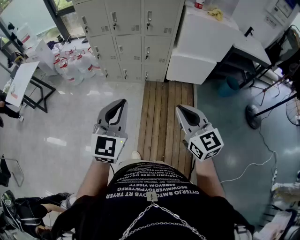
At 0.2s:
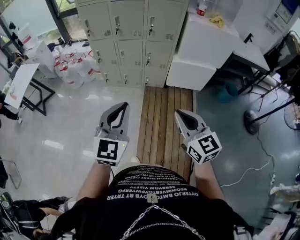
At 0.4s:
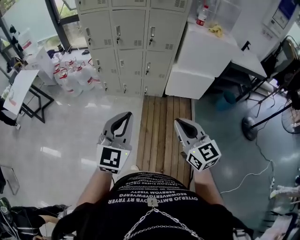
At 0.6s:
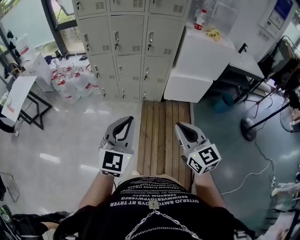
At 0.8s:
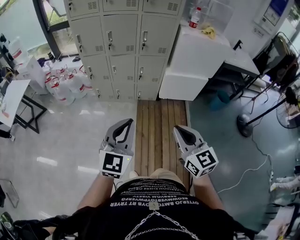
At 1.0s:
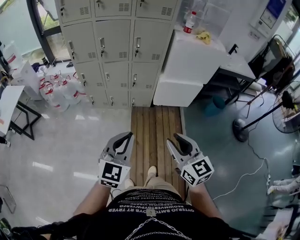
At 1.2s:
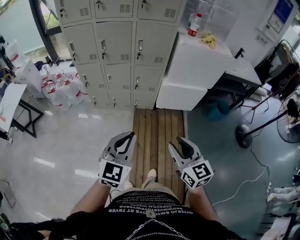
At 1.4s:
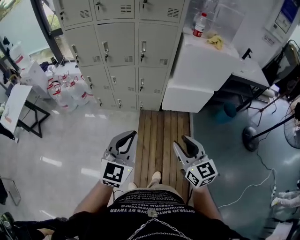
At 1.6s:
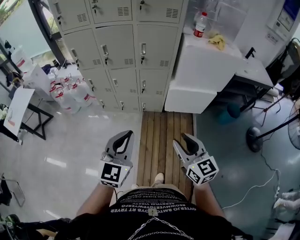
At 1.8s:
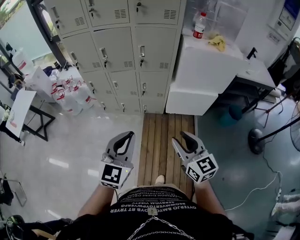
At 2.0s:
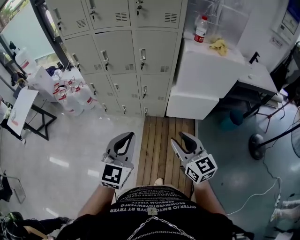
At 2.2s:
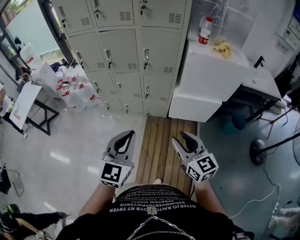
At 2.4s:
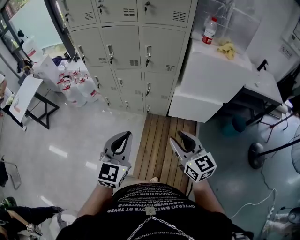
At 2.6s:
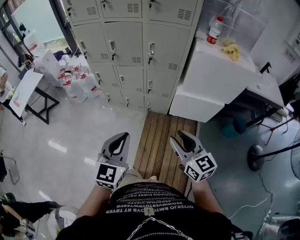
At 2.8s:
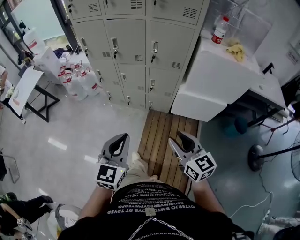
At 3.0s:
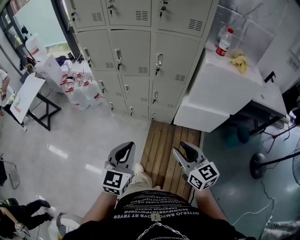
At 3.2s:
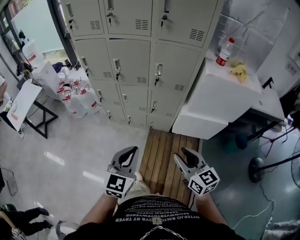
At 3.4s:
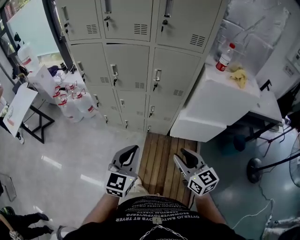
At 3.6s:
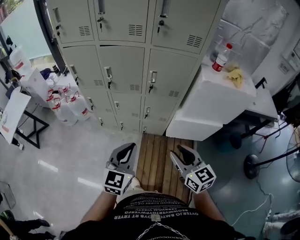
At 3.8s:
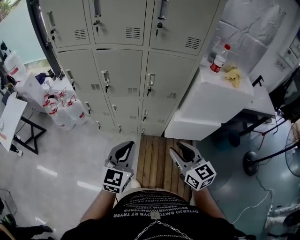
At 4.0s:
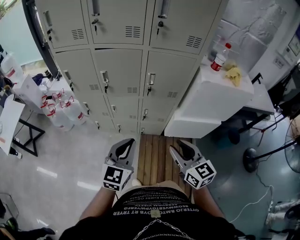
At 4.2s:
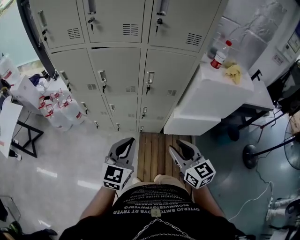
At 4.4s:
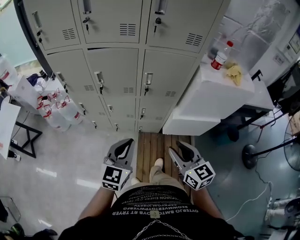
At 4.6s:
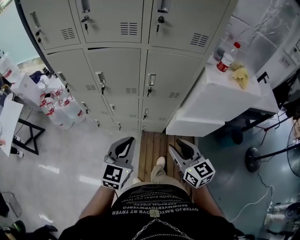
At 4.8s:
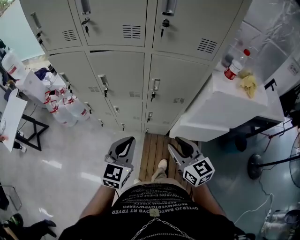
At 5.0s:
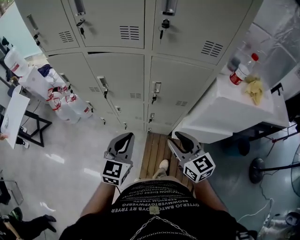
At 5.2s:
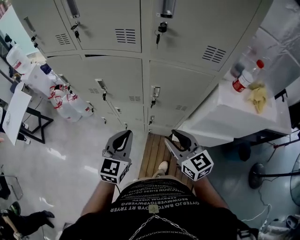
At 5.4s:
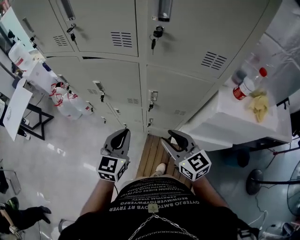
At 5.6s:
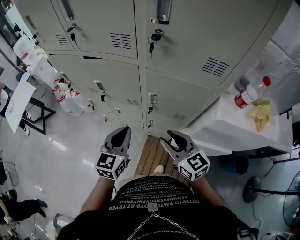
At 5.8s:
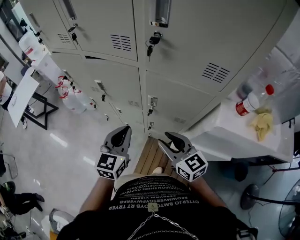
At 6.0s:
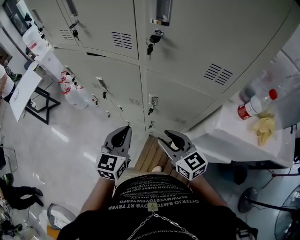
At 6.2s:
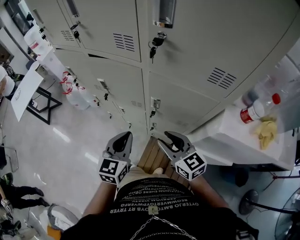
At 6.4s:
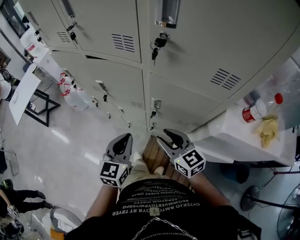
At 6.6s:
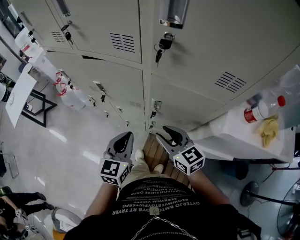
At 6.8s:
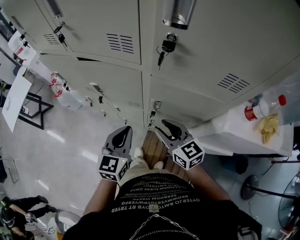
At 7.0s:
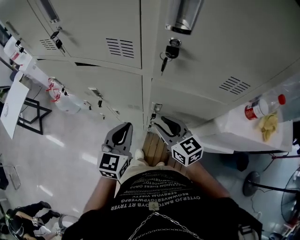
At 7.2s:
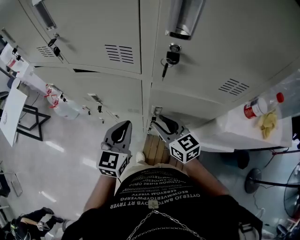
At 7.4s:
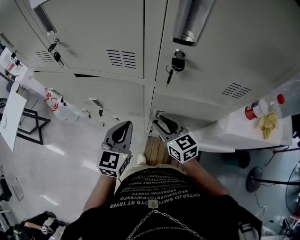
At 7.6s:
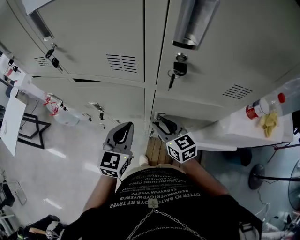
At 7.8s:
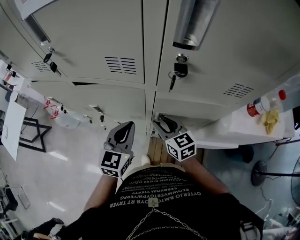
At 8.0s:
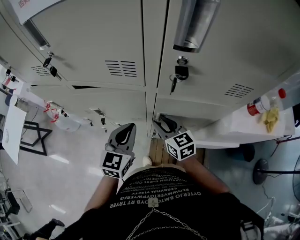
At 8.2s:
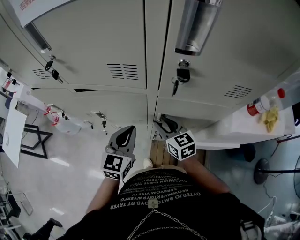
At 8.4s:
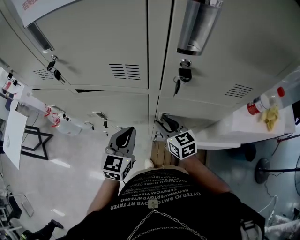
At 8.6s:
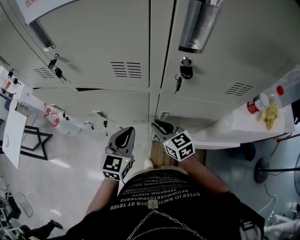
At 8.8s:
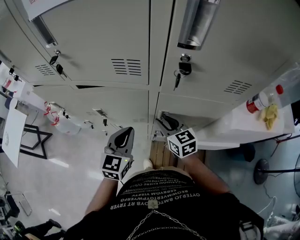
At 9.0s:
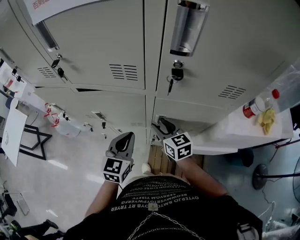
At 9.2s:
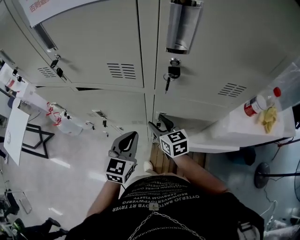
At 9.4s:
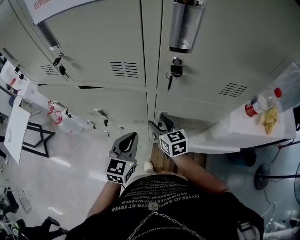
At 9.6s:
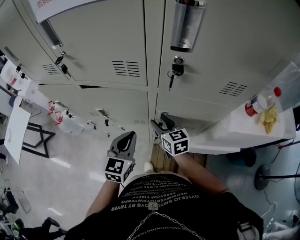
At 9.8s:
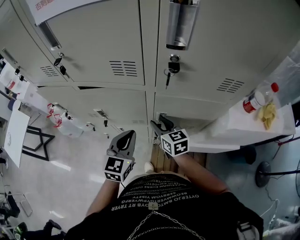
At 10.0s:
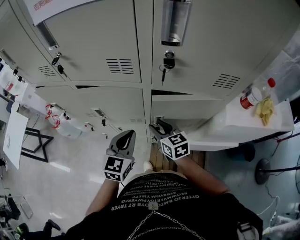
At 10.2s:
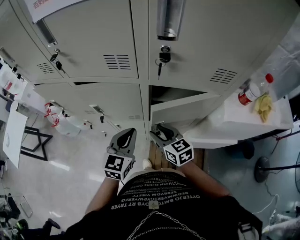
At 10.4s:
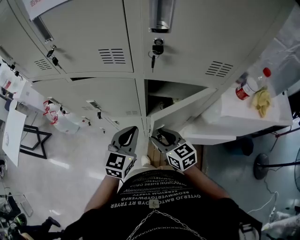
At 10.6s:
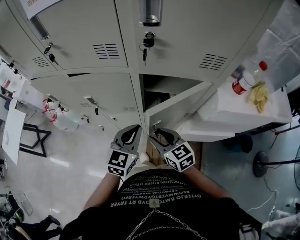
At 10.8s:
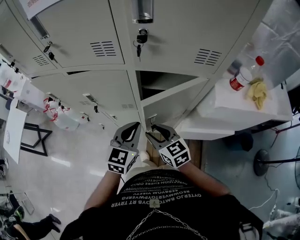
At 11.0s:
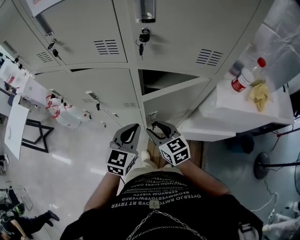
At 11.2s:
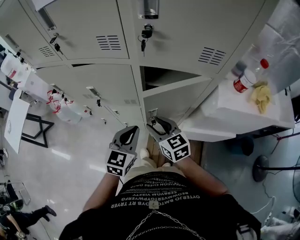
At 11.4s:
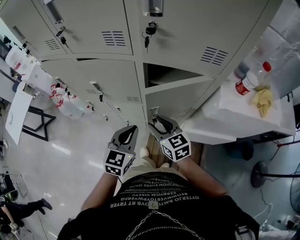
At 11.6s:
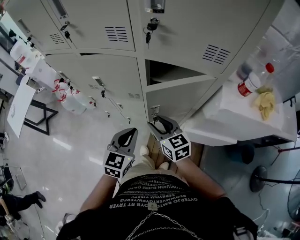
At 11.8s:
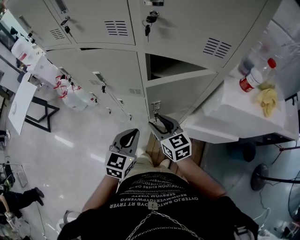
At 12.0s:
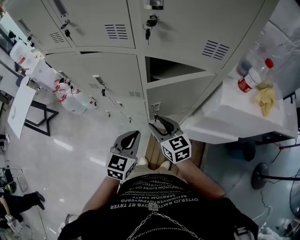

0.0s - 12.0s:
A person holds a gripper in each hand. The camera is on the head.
0.0s - 1.6s: The grippers both shift forward by some 20 cm. The right gripper opens up.
1.6s - 3.0s: The left gripper goes about 10 cm forward and downward, while the right gripper shifts roughly 10 cm forward.
3.0s - 4.4s: The two grippers go some 20 cm forward.
4.4s - 6.0s: The left gripper ends up roughly 20 cm from where it was, and swivels approximately 30 degrees. Meanwhile the right gripper ends up some 25 cm from where it was, and rotates approximately 30 degrees.
6.0s - 7.6s: Both grippers travel together forward, about 15 cm.
7.6s - 9.0s: The grippers stay close to where they were, moving slightly.
9.0s - 10.4s: The left gripper shifts by some 5 cm, while the right gripper moves backward, about 10 cm.
10.4s - 12.0s: The left gripper goes roughly 10 cm backward.

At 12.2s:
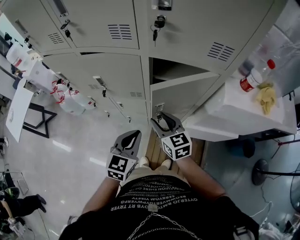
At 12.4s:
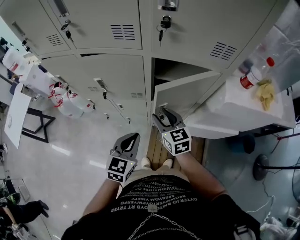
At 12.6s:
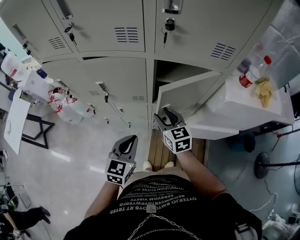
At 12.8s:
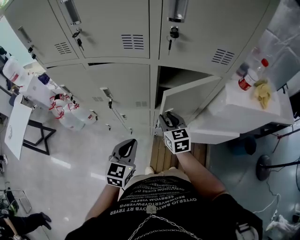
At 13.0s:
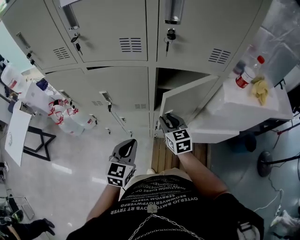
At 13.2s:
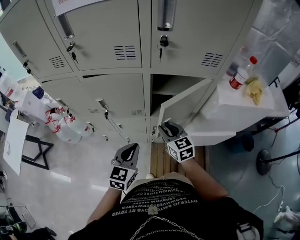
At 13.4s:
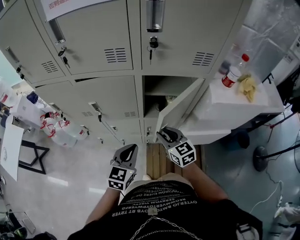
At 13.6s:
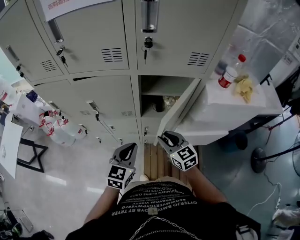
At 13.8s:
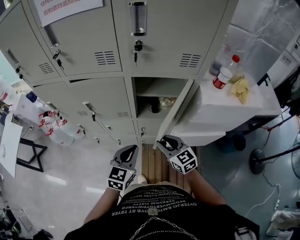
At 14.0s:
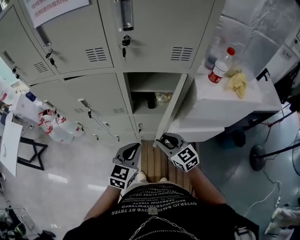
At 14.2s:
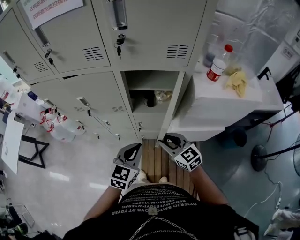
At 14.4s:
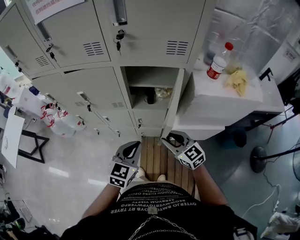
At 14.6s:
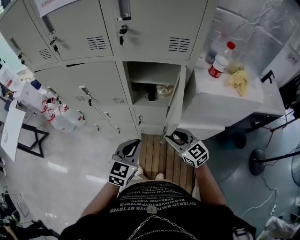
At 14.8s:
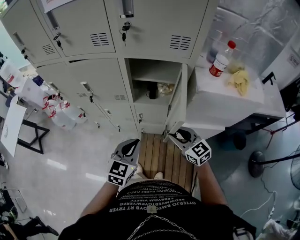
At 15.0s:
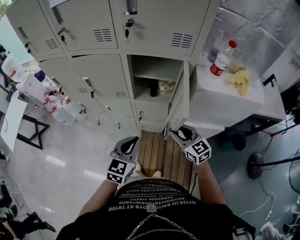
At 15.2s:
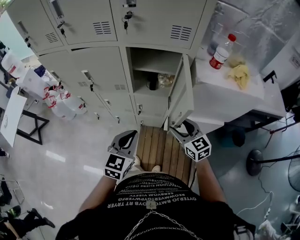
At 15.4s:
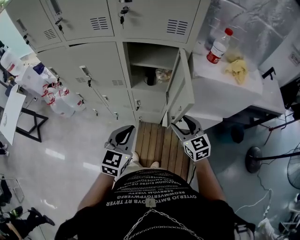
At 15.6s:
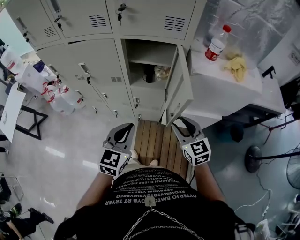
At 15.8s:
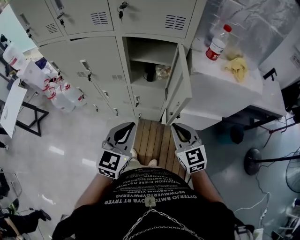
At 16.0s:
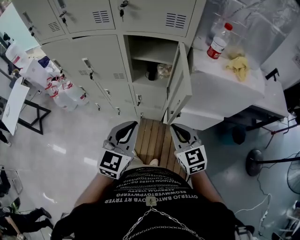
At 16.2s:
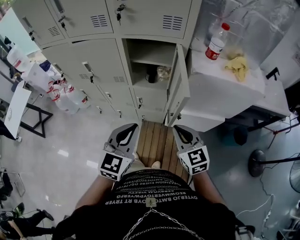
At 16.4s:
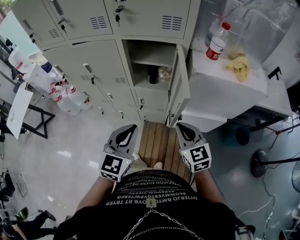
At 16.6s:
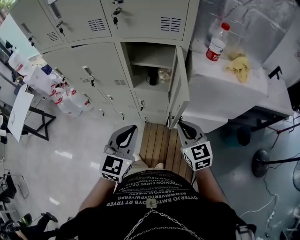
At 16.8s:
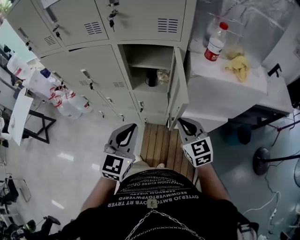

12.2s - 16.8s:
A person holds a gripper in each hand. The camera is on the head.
12.2s - 13.8s: The left gripper travels to the left and back again, about 10 cm each way. The right gripper shifts some 10 cm backward and to the right.
13.8s - 15.2s: The left gripper is displaced backward and to the right by about 10 cm; the right gripper heads to the right and backward, covering approximately 15 cm, and opens.
15.2s - 16.8s: The left gripper is displaced upward by roughly 5 cm; the right gripper reaches roughly 10 cm backward, then returns, and closes its fingers.

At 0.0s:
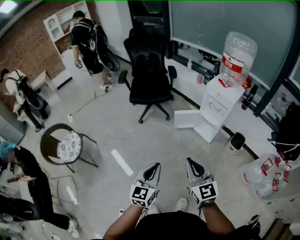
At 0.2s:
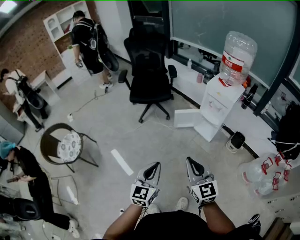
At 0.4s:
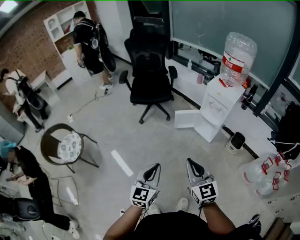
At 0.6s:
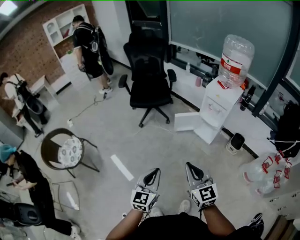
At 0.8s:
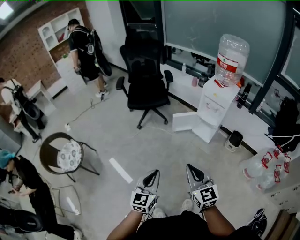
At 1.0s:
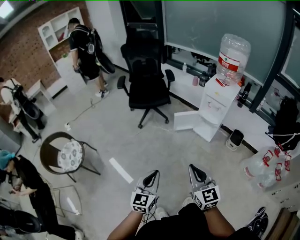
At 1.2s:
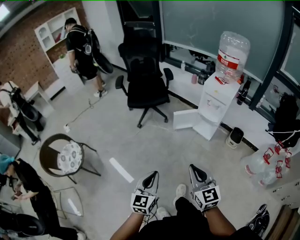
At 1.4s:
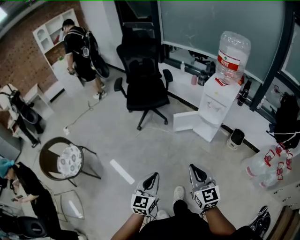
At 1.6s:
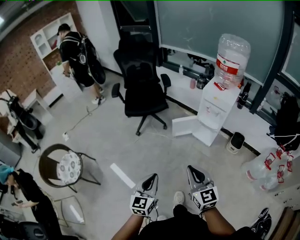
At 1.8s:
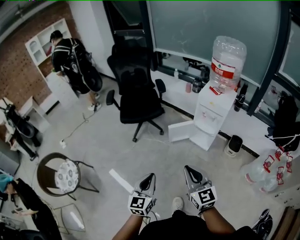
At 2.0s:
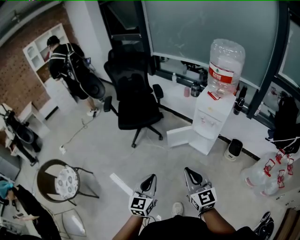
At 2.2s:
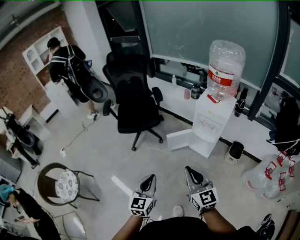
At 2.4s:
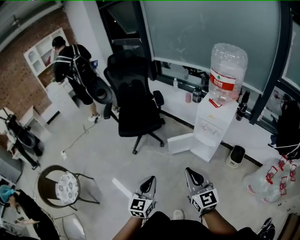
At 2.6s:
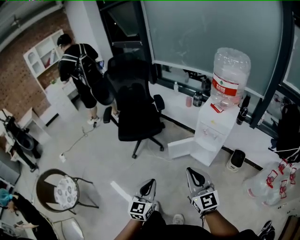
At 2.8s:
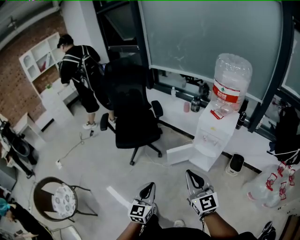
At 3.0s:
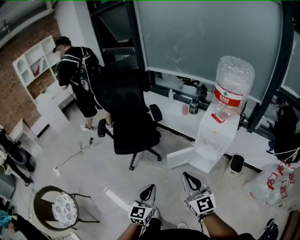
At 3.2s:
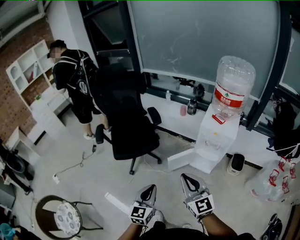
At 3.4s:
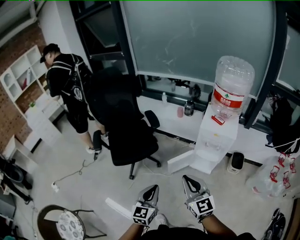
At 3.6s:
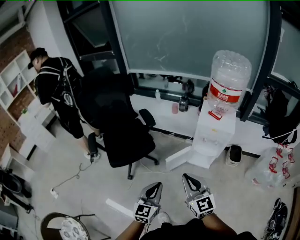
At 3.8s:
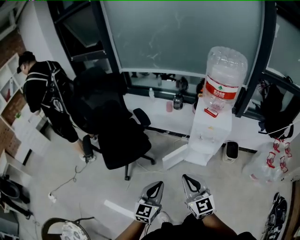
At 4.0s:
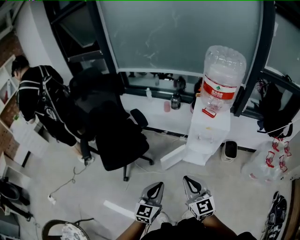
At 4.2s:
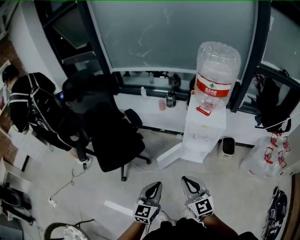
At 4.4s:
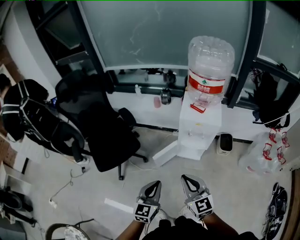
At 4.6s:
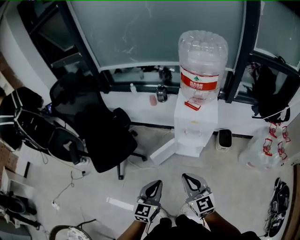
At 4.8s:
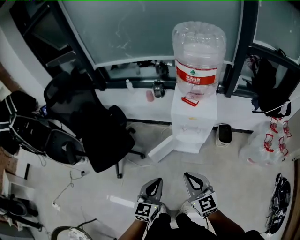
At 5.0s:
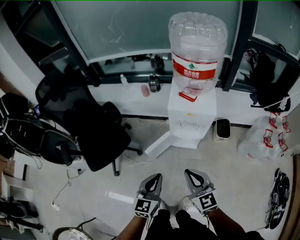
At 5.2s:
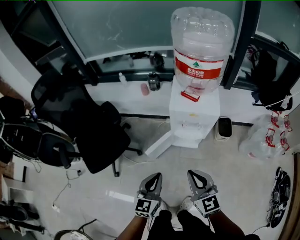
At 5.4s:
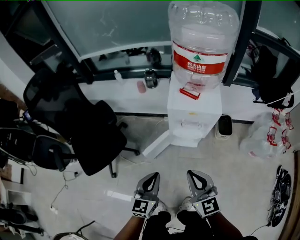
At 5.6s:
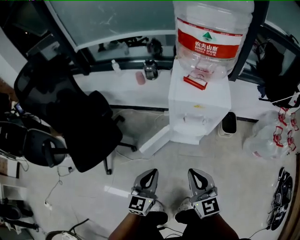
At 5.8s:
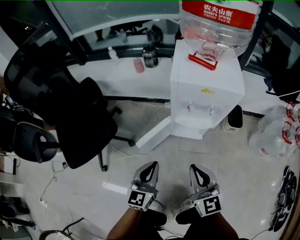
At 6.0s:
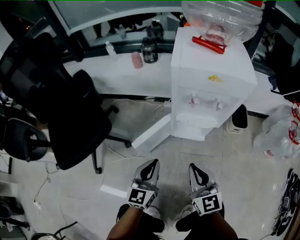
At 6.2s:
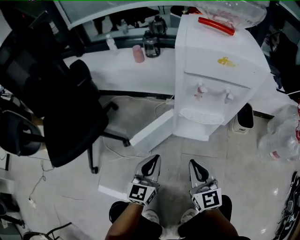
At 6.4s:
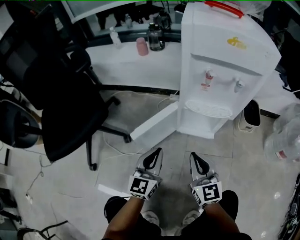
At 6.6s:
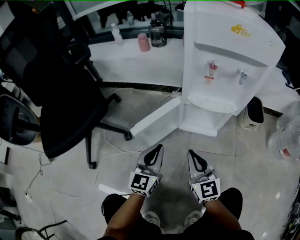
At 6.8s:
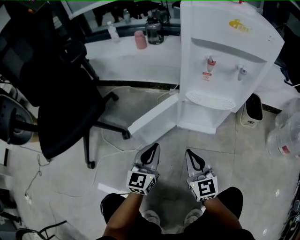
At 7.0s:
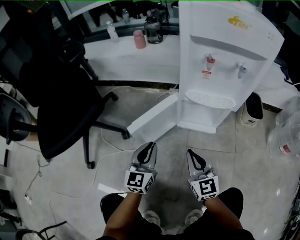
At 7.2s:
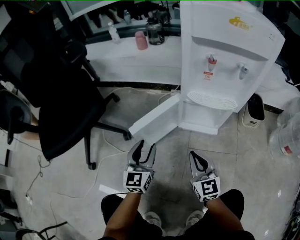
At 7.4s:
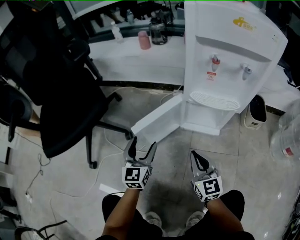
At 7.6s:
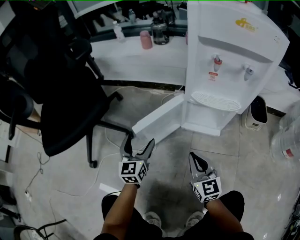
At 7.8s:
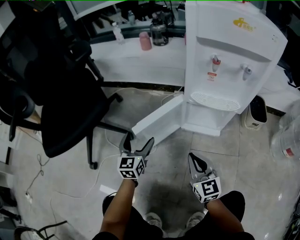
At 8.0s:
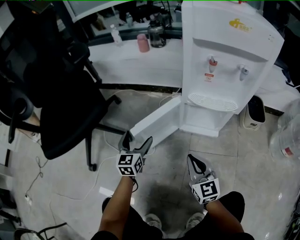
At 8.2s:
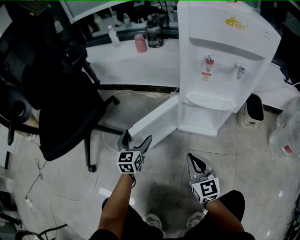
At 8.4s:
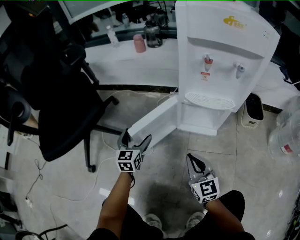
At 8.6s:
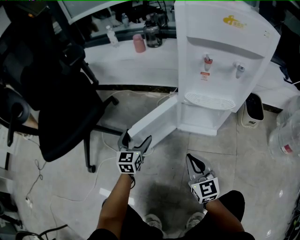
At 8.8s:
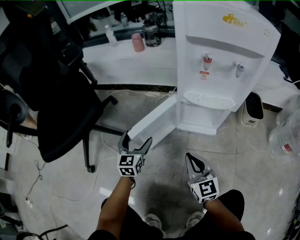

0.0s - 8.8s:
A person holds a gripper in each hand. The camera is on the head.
0.0s - 1.4s: The right gripper ends up approximately 5 cm from where it was. Meanwhile the left gripper shifts approximately 5 cm to the left.
1.4s - 3.0s: Both grippers move forward, roughly 30 cm.
3.0s - 4.4s: The left gripper is displaced forward by some 15 cm, and swivels roughly 20 degrees; the right gripper travels forward and downward by about 10 cm, and reaches roughly 5 cm to the left, then returns.
4.4s - 5.8s: Both grippers travel together downward and forward, some 25 cm.
5.8s - 7.4s: The grippers both shift downward by about 30 cm. The left gripper opens up.
7.4s - 8.8s: The left gripper moves forward, some 5 cm.
